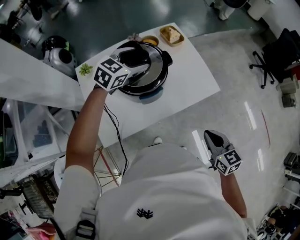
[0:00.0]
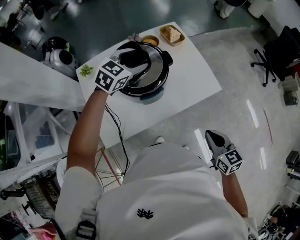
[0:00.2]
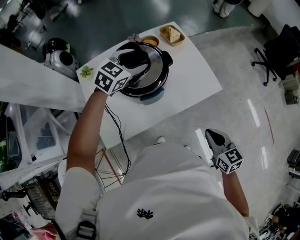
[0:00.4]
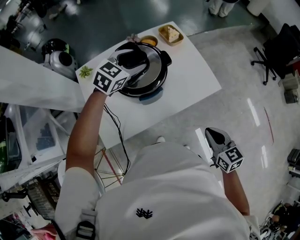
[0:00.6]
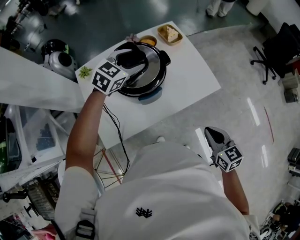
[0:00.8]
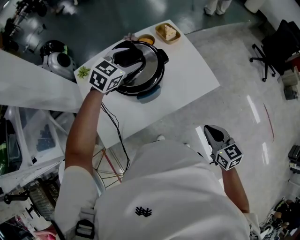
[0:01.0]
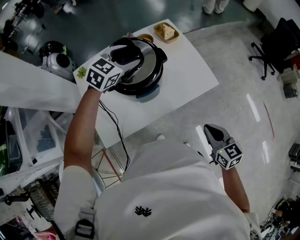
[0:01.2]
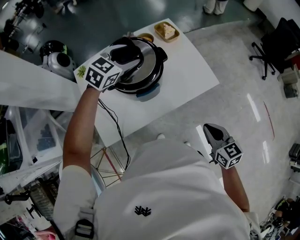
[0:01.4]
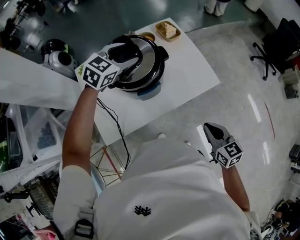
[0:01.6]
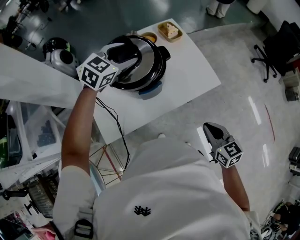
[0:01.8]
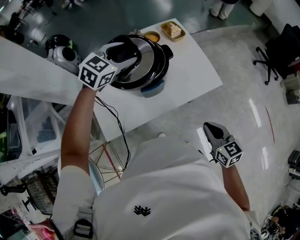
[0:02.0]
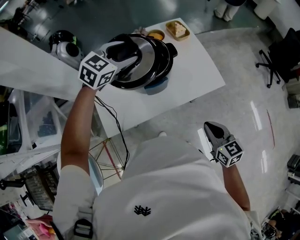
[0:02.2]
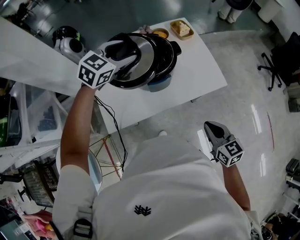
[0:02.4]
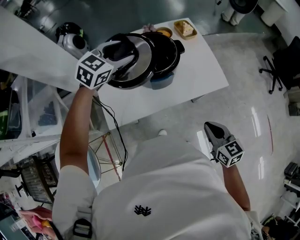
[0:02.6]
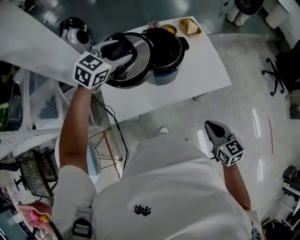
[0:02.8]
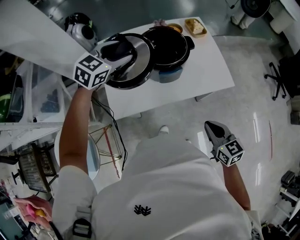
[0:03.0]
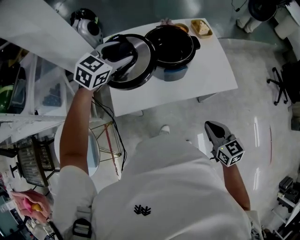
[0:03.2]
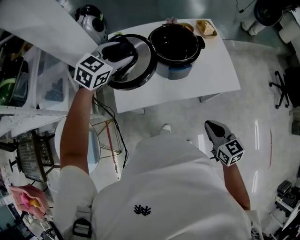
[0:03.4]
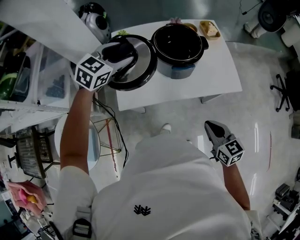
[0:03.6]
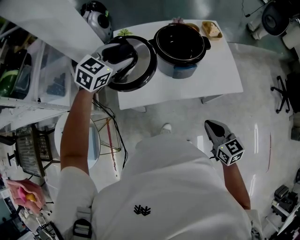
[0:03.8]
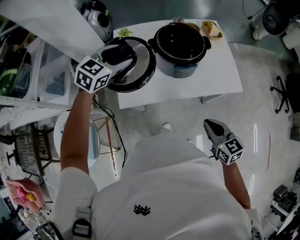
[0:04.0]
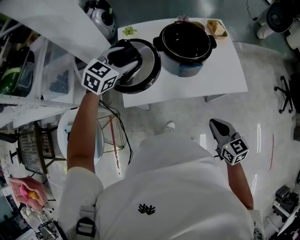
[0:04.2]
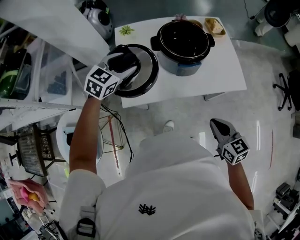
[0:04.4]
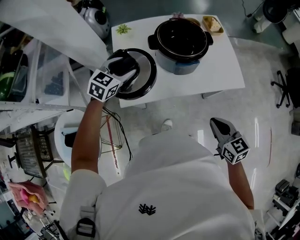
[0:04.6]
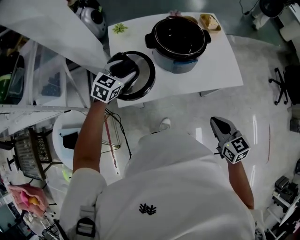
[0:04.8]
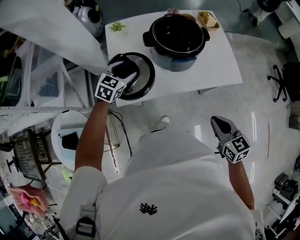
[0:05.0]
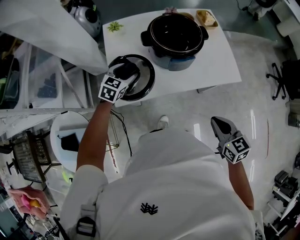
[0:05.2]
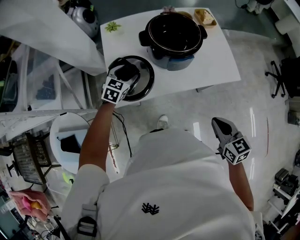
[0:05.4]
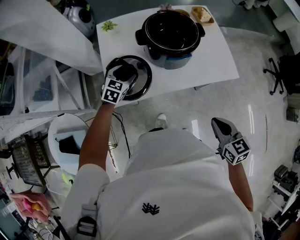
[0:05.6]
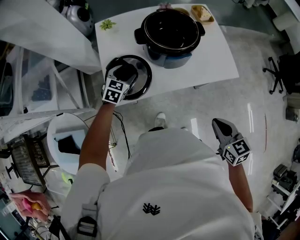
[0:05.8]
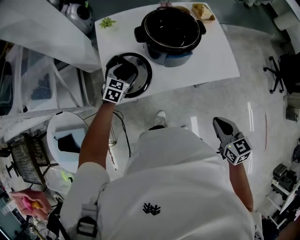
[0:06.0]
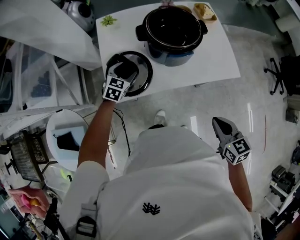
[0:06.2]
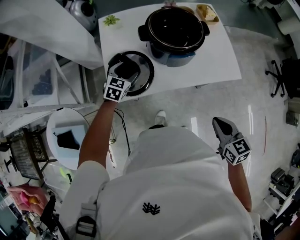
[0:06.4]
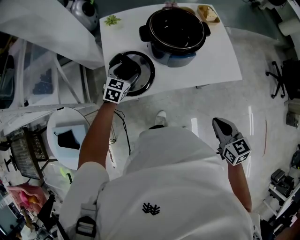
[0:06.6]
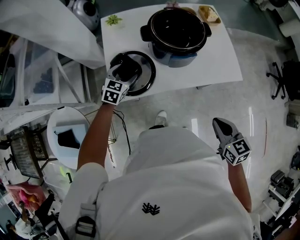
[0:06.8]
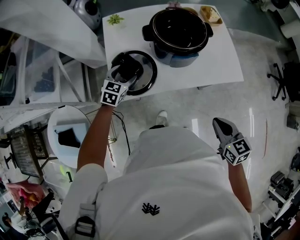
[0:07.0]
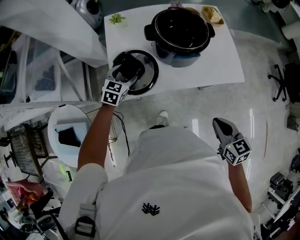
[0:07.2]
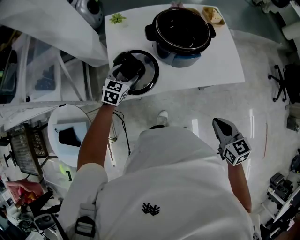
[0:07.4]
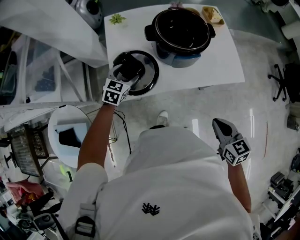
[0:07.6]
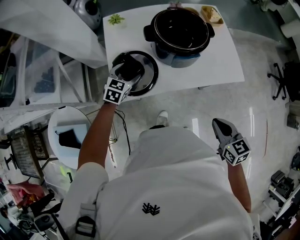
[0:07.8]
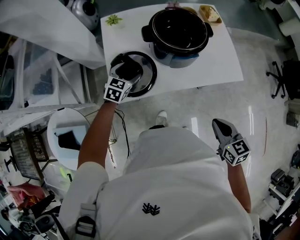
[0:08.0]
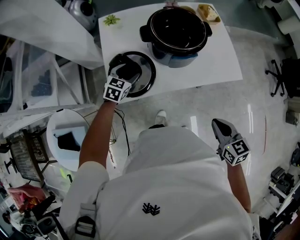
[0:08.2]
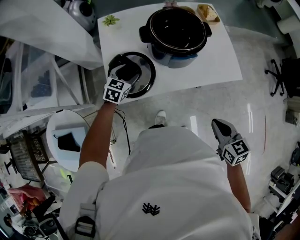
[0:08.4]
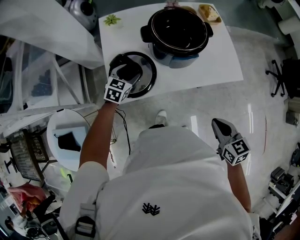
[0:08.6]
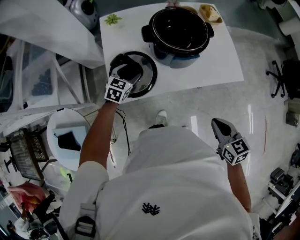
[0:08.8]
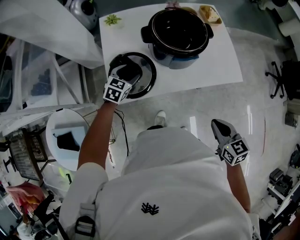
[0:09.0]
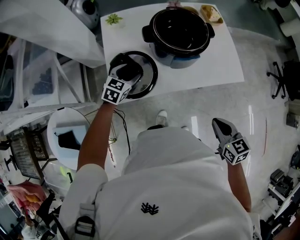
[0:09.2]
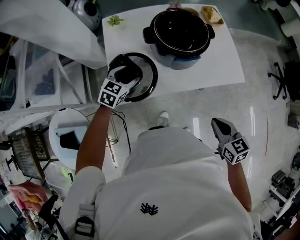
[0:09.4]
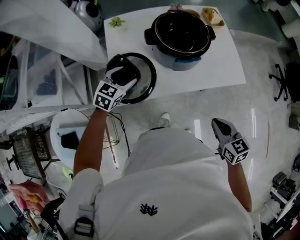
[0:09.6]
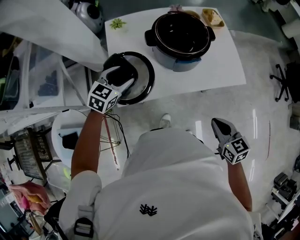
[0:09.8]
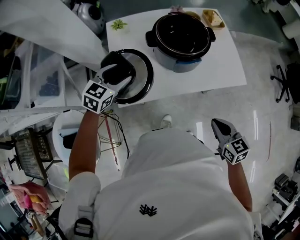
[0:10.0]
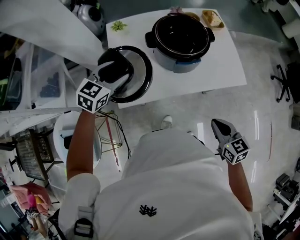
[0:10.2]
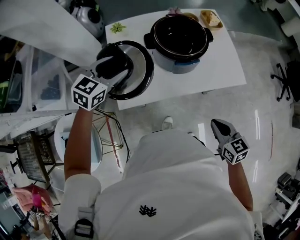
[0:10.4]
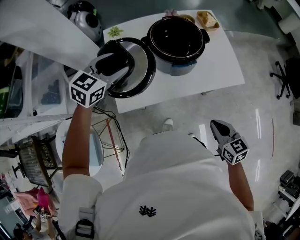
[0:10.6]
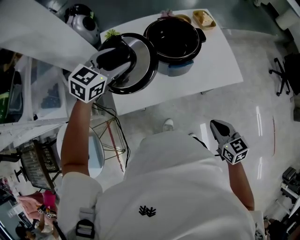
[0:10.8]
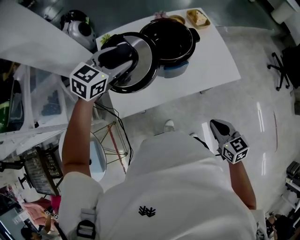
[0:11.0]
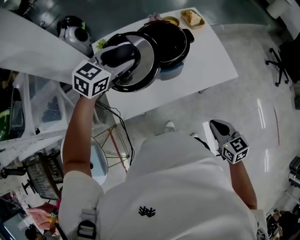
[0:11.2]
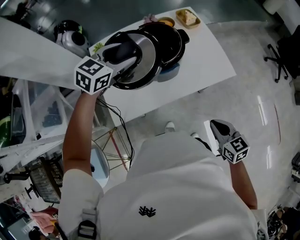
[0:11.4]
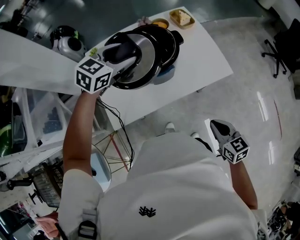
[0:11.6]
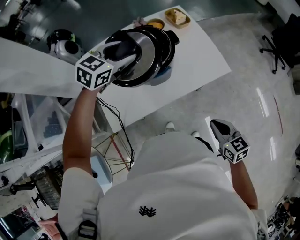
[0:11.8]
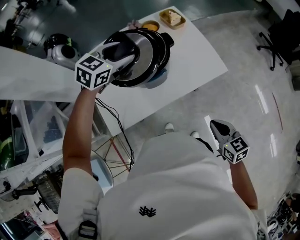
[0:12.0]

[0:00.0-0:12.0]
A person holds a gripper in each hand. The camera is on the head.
0.0 to 1.6 s: There are only small adjustments of the grippers.
1.6 to 3.0 s: The left gripper is displaced to the left and backward by about 15 cm. The right gripper moves about 5 cm.
3.0 to 4.4 s: The left gripper heads to the left, downward and backward, covering approximately 15 cm.
4.4 to 6.0 s: The left gripper heads downward, covering approximately 20 cm.
6.0 to 9.0 s: The grippers stay close to where they were, moving slightly.
9.0 to 10.4 s: The left gripper goes roughly 20 cm upward.
10.4 to 12.0 s: The left gripper moves to the right and forward, approximately 25 cm. The right gripper heads to the right, covering some 5 cm.

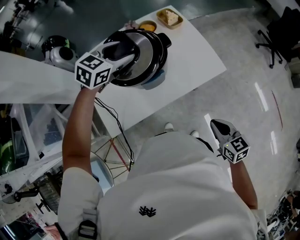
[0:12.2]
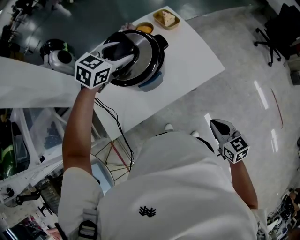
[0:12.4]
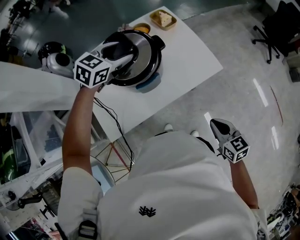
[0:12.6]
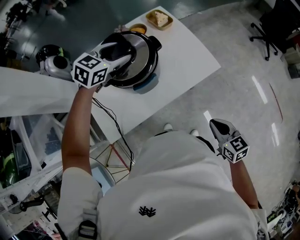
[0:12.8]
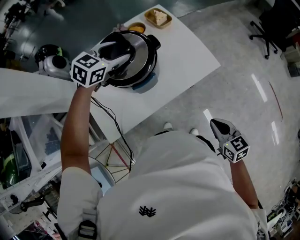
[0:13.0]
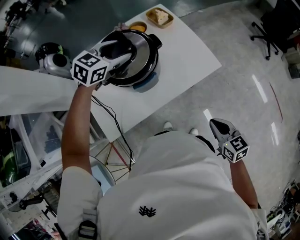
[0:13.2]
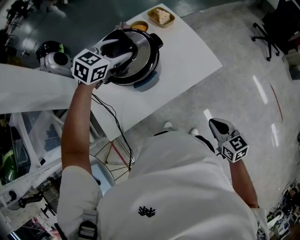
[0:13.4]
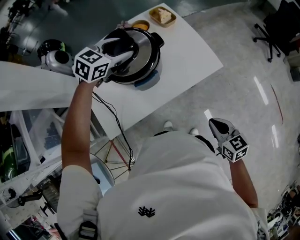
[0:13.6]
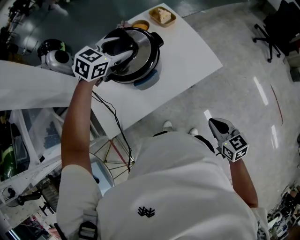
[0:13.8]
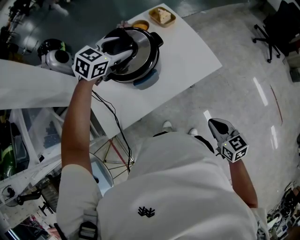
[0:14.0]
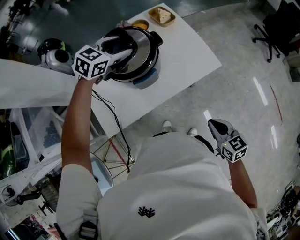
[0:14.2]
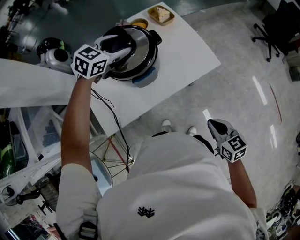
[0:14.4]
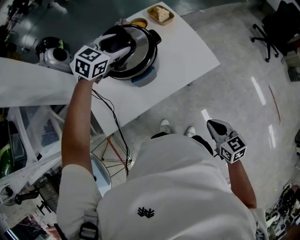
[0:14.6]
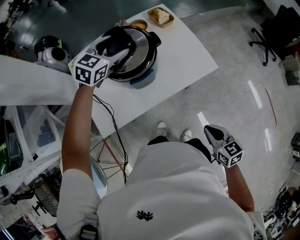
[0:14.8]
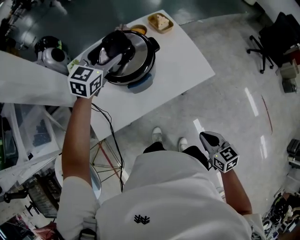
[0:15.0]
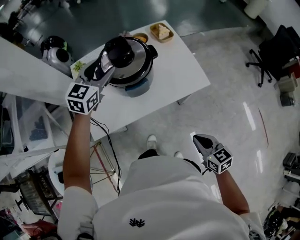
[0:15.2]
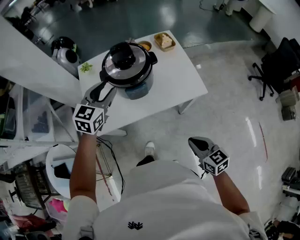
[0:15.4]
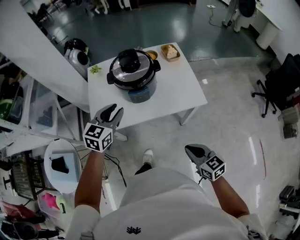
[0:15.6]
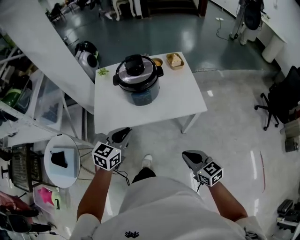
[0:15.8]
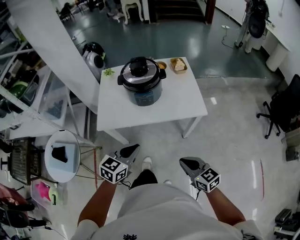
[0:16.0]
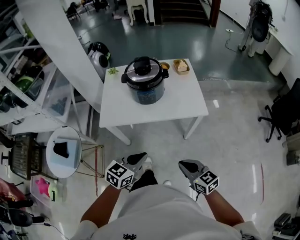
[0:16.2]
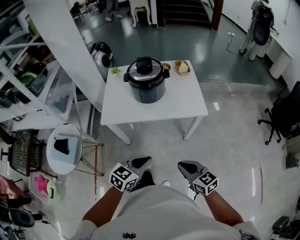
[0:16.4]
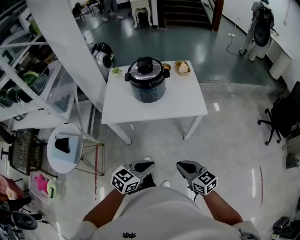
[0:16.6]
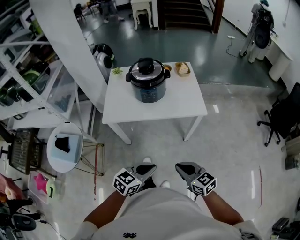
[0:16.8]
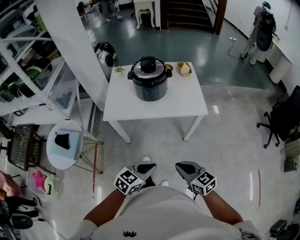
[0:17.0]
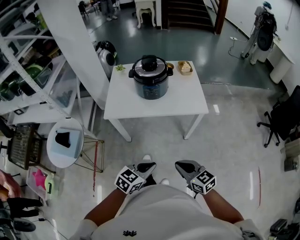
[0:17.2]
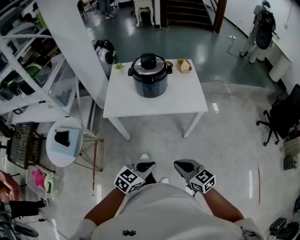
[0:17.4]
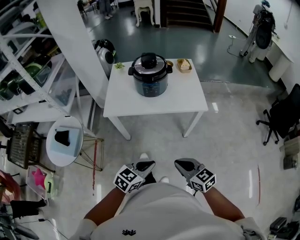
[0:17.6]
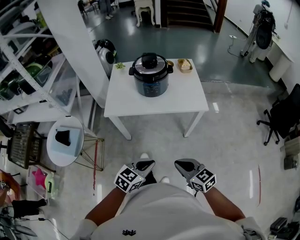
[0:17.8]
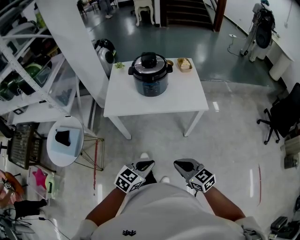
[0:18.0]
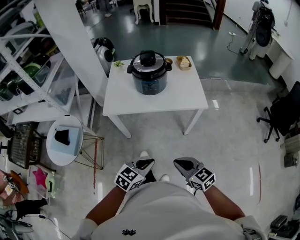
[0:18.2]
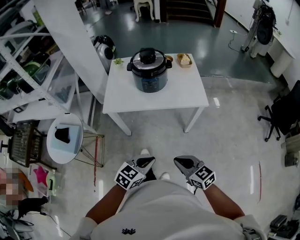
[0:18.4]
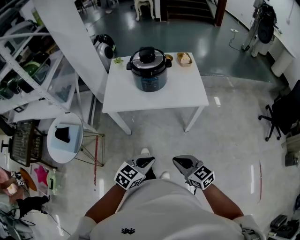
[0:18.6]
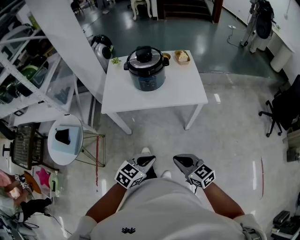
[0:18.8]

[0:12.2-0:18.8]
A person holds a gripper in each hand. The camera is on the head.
12.2 to 13.8 s: The grippers move only a little.
13.8 to 15.4 s: The left gripper is displaced backward by some 15 cm, and rotates some 40 degrees.
15.4 to 17.2 s: The left gripper goes about 50 cm backward, turns by some 20 degrees, and closes. The right gripper moves backward, approximately 15 cm, and rotates approximately 20 degrees.
17.2 to 18.8 s: The grippers move only a little.

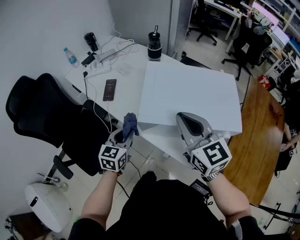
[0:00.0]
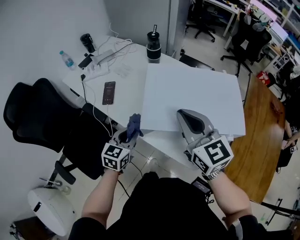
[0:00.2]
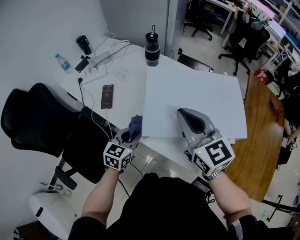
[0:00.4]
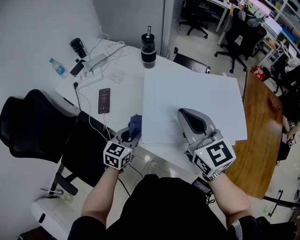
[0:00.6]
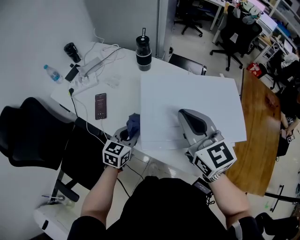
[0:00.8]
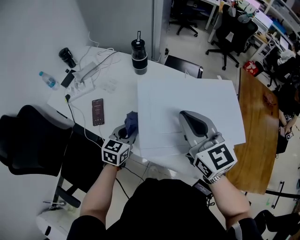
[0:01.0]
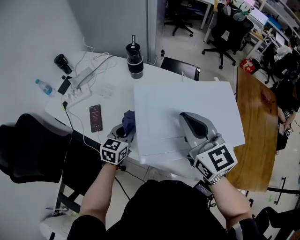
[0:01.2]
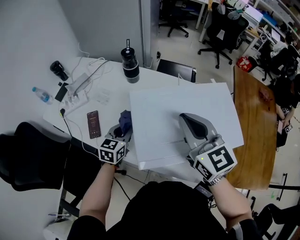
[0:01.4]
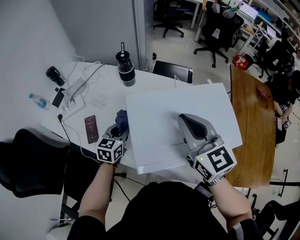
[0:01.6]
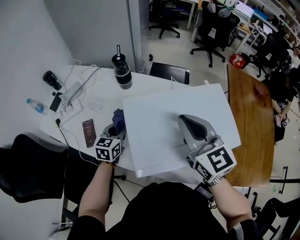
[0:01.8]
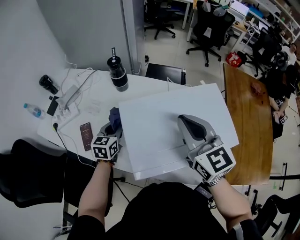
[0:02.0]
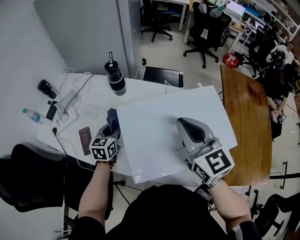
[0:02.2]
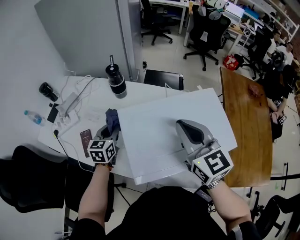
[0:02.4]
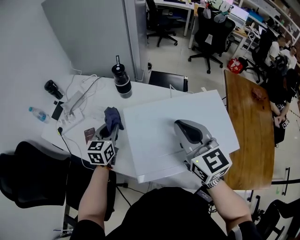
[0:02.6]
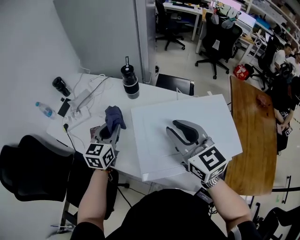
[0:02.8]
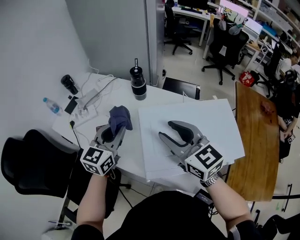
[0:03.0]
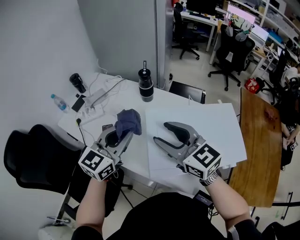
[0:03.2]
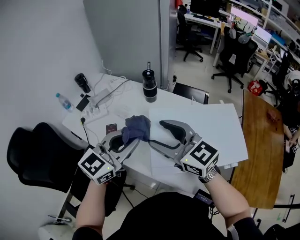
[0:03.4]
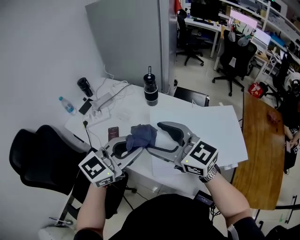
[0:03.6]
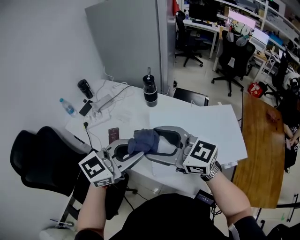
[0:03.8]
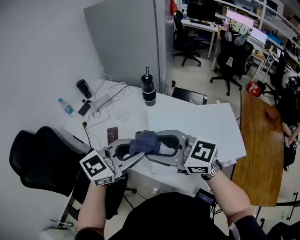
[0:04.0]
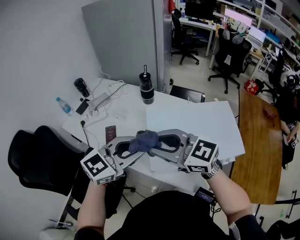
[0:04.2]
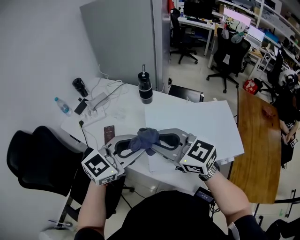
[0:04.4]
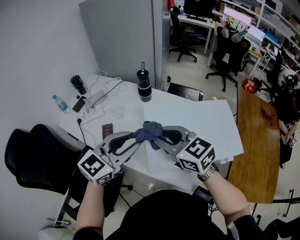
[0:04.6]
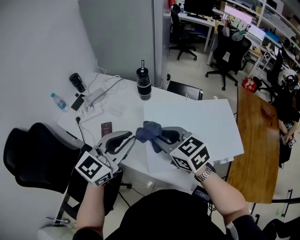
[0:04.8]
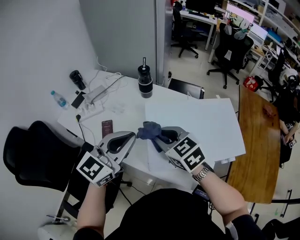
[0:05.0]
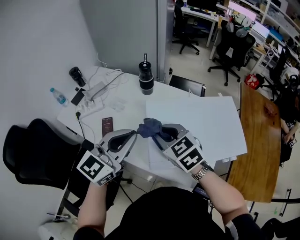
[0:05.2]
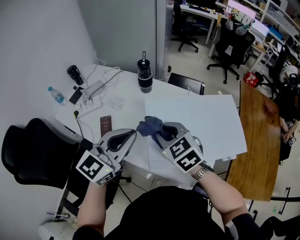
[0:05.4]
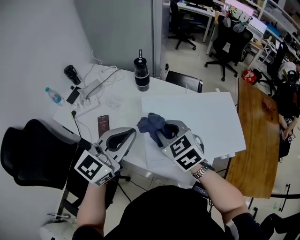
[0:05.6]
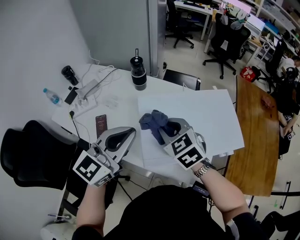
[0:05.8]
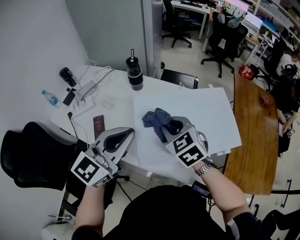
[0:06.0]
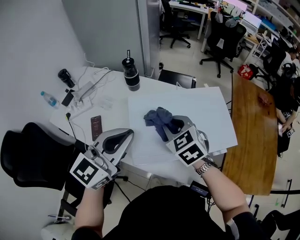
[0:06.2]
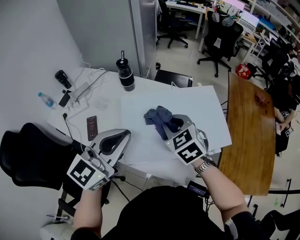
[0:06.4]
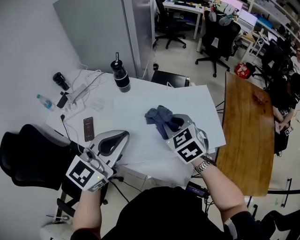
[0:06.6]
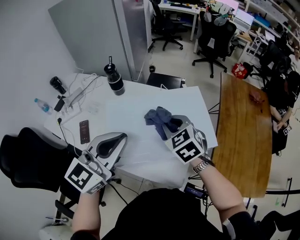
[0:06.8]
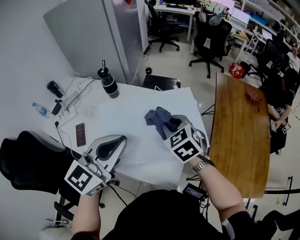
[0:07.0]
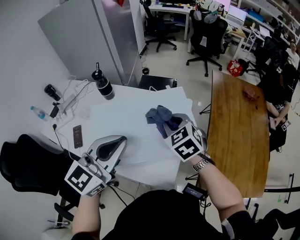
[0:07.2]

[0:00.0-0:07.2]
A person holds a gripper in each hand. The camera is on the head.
0.0 to 1.4 s: The left gripper moves forward, roughly 20 cm. Meanwhile the right gripper is displaced forward by some 15 cm.
1.4 to 2.8 s: The left gripper goes approximately 10 cm upward and to the left.
2.8 to 4.4 s: The right gripper moves roughly 15 cm, turns by some 30 degrees, and opens, then closes again. Meanwhile the left gripper ends up roughly 20 cm from where it was, and turns by about 30 degrees.
4.4 to 5.8 s: The left gripper closes up. The right gripper travels downward, forward and to the right by some 15 cm, and swivels approximately 40 degrees.
5.8 to 7.2 s: The grippers both shift to the right by approximately 20 cm.
